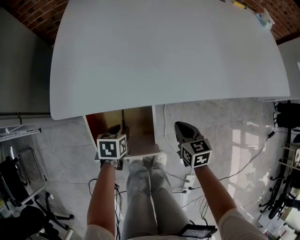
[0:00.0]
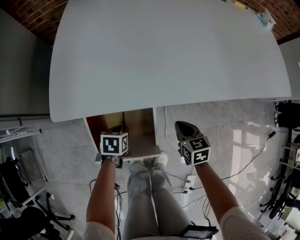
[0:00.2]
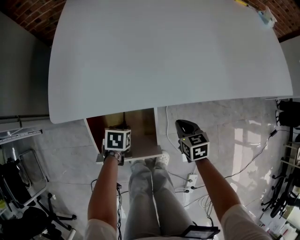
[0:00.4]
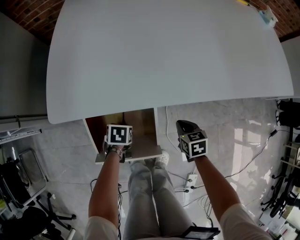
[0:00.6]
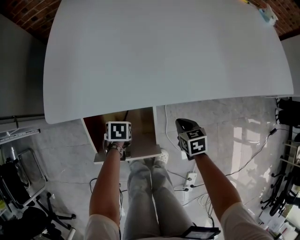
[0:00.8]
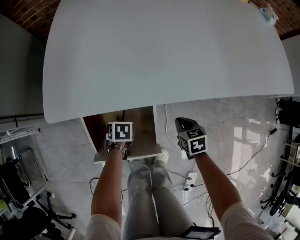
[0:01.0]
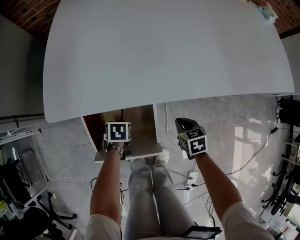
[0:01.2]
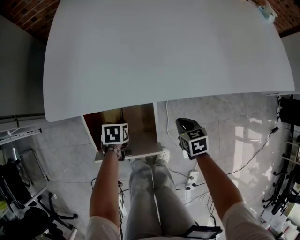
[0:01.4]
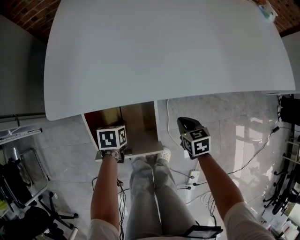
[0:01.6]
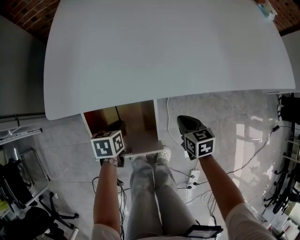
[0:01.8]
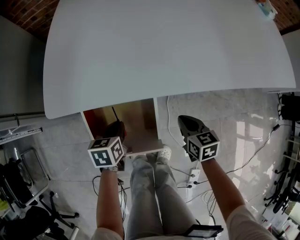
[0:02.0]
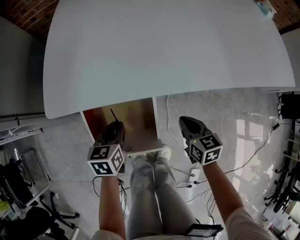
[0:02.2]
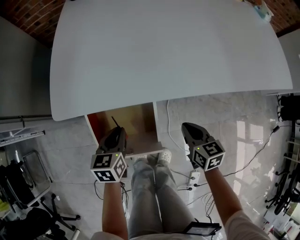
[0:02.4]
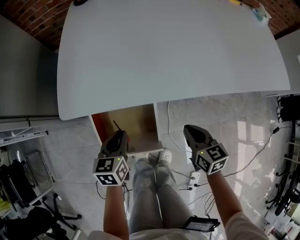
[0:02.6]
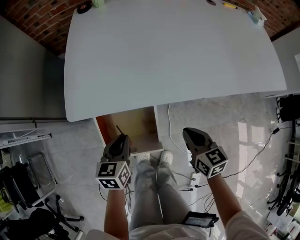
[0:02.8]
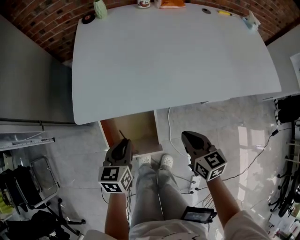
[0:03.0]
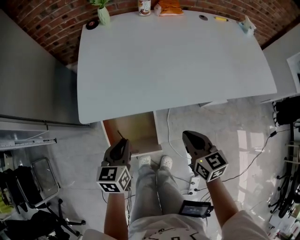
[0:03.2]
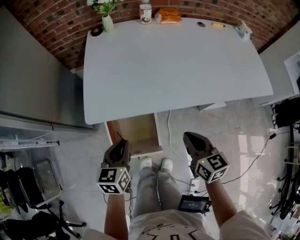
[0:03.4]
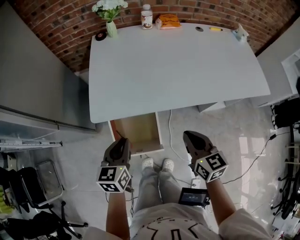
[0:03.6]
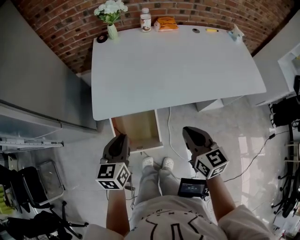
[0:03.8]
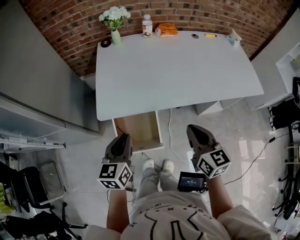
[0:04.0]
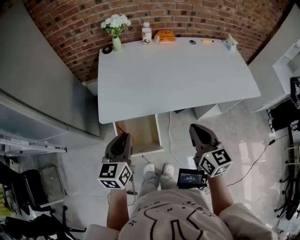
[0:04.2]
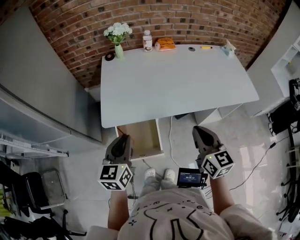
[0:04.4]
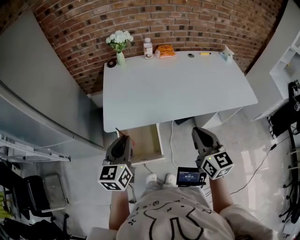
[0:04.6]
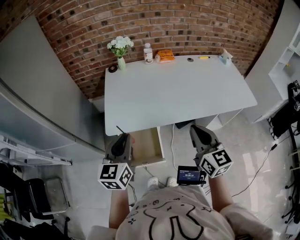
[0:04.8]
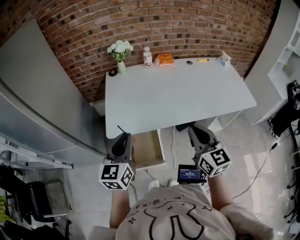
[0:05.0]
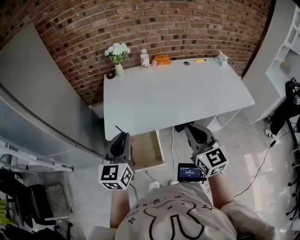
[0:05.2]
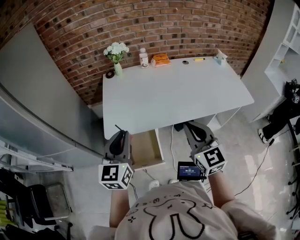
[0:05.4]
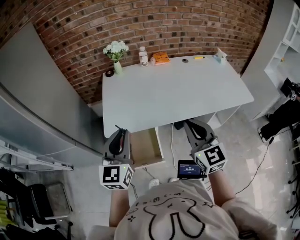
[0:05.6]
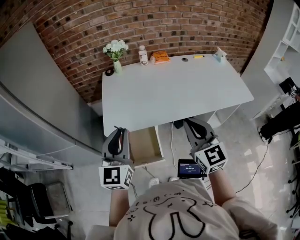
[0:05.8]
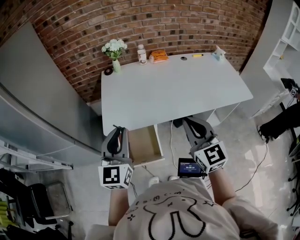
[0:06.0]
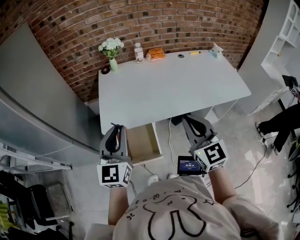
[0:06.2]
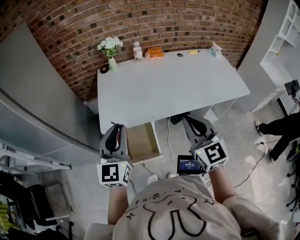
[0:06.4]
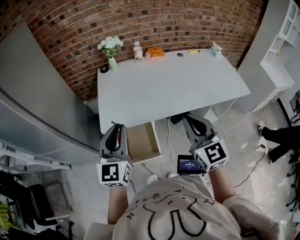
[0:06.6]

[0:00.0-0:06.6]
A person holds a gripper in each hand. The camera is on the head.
0:00.0 to 0:01.6: The right gripper moves downward, roughly 5 cm. The left gripper closes its fingers.
0:01.6 to 0:03.2: The grippers both shift upward by some 30 cm. The right gripper swivels about 30 degrees; the left gripper changes its angle by some 30 degrees.
0:03.2 to 0:05.0: Both grippers travel together upward, roughly 25 cm. The left gripper rotates roughly 30 degrees. The right gripper rotates roughly 30 degrees.
0:05.0 to 0:06.6: There are only small adjustments of the grippers.

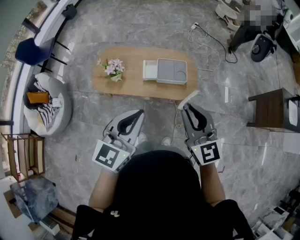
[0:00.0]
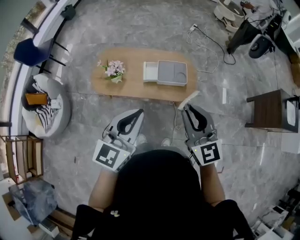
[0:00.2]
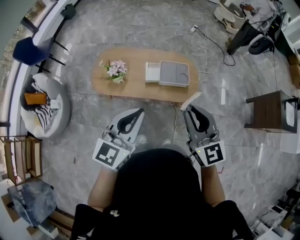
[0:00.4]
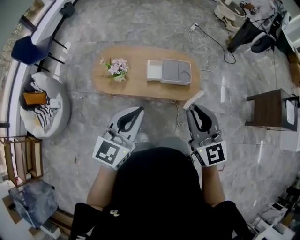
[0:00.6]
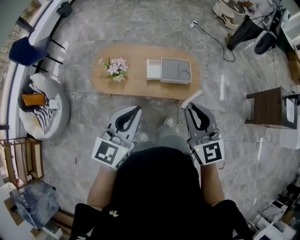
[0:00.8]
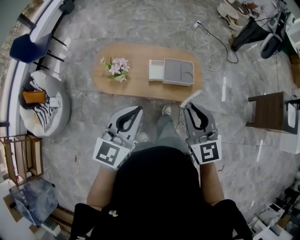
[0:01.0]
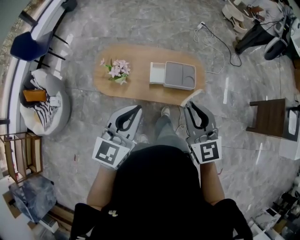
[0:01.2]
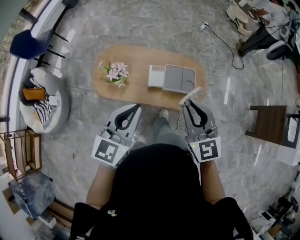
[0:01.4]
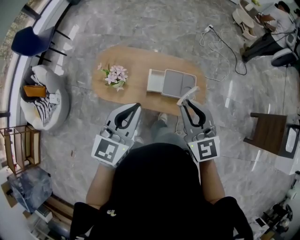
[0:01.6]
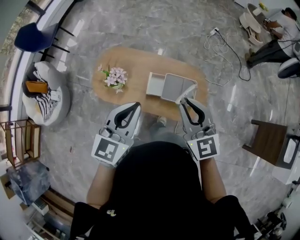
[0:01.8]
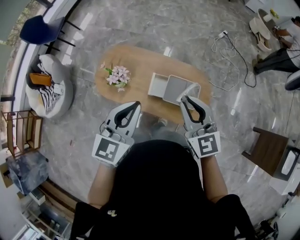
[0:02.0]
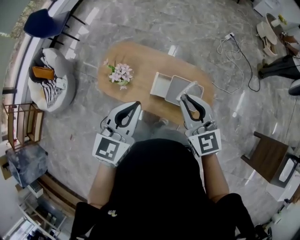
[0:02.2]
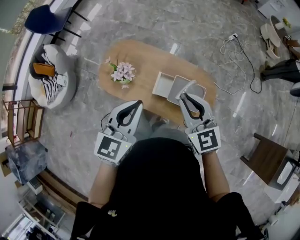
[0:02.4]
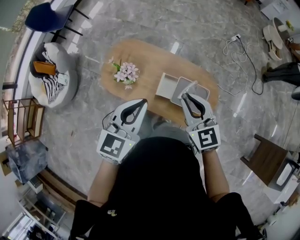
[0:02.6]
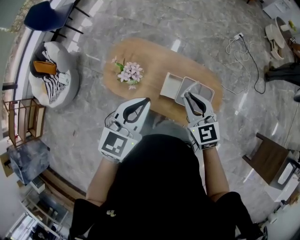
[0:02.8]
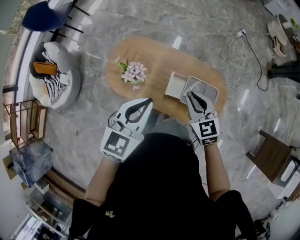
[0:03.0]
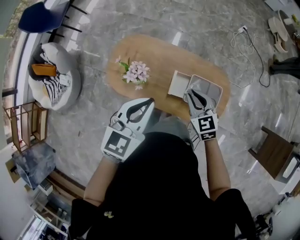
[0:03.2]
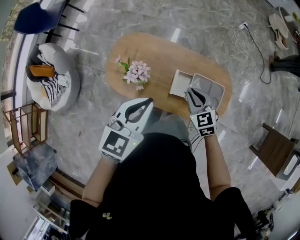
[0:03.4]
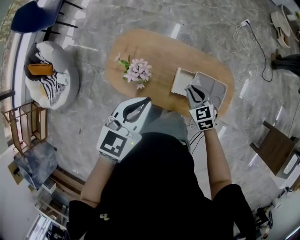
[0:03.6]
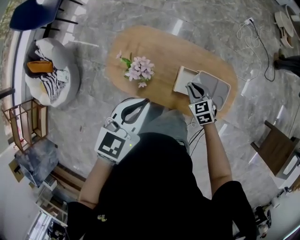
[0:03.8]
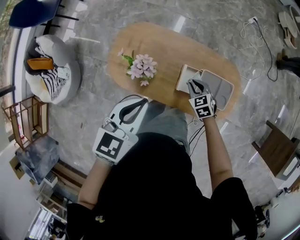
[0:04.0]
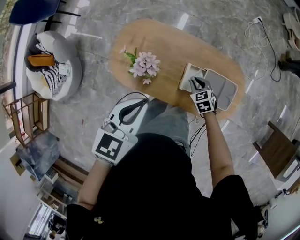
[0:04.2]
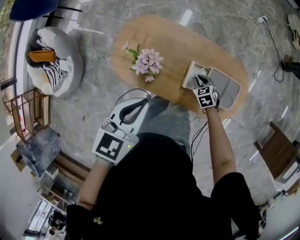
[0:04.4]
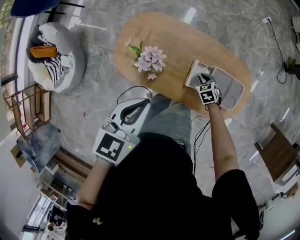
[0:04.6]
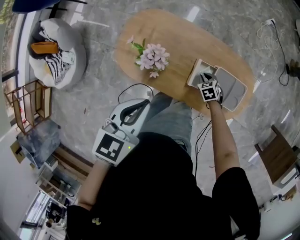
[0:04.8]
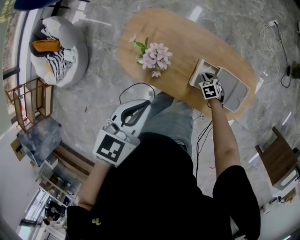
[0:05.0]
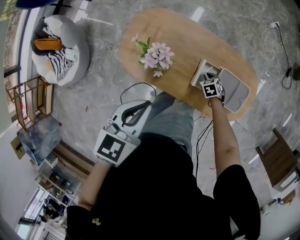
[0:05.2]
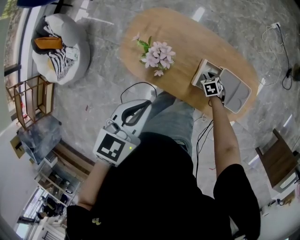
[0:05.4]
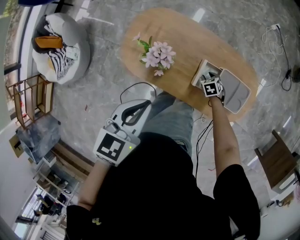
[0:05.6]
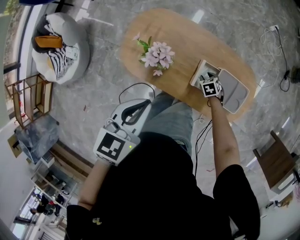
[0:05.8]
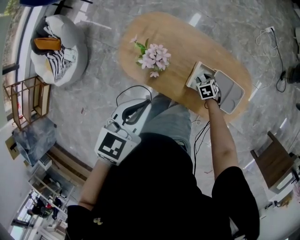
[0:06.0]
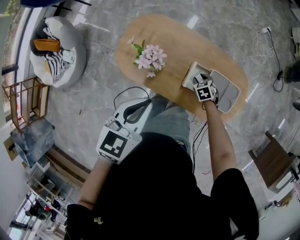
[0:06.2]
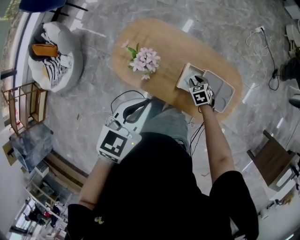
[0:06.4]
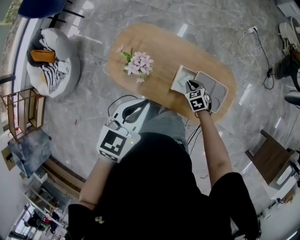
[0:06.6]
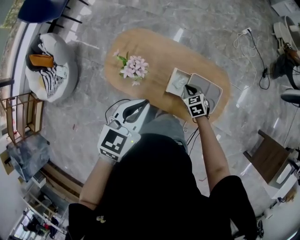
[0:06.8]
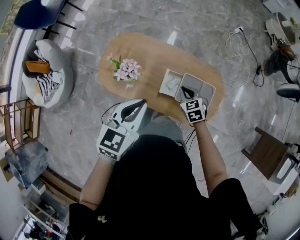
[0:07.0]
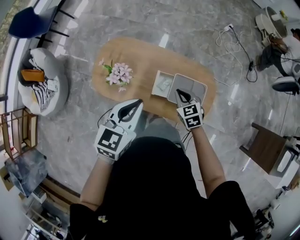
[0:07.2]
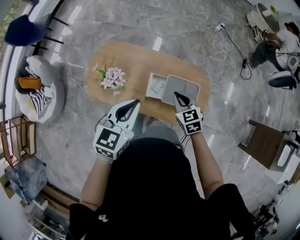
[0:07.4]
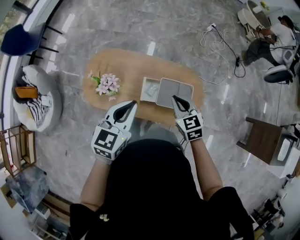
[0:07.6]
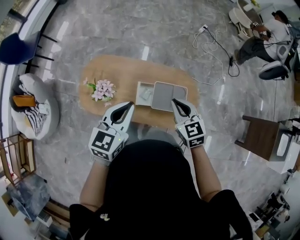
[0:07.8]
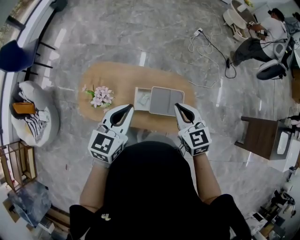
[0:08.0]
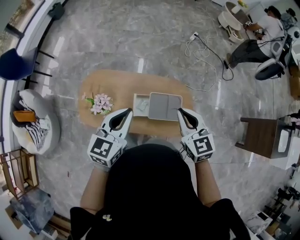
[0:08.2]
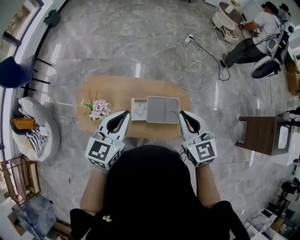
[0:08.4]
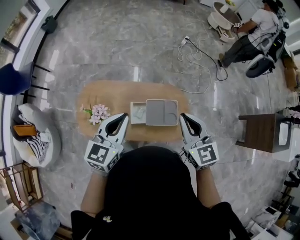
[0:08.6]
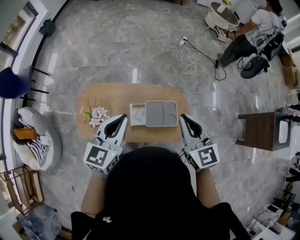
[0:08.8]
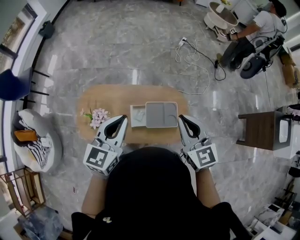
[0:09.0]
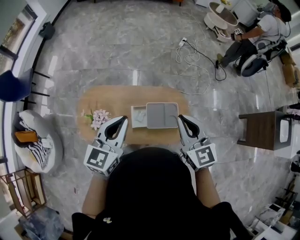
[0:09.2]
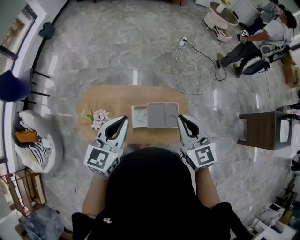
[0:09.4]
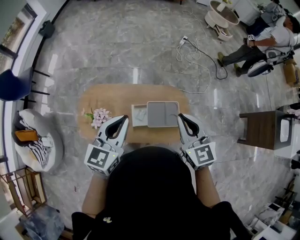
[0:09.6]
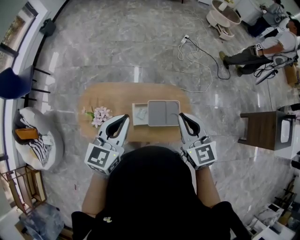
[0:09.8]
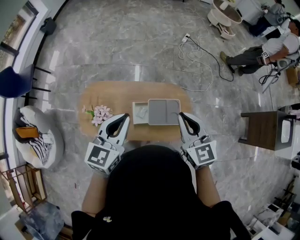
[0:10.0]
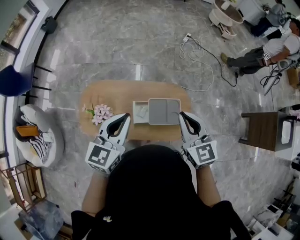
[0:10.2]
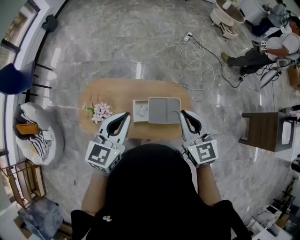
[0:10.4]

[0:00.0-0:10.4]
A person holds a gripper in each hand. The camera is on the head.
0:00.0 to 0:01.4: The grippers both shift forward and to the left by approximately 15 cm.
0:01.4 to 0:03.0: The right gripper travels forward and downward by roughly 30 cm, and swivels about 20 degrees; the left gripper shifts about 20 cm forward.
0:03.0 to 0:04.4: The right gripper travels downward by approximately 35 cm, and tilts its fingers approximately 30 degrees downward. Meanwhile the left gripper goes some 15 cm downward and to the left.
0:04.4 to 0:06.0: The right gripper heads downward, covering about 5 cm, and opens up.
0:06.0 to 0:07.4: The left gripper travels to the right and upward by roughly 15 cm, while the right gripper moves upward, about 30 cm, changes its angle by roughly 30 degrees, and closes its fingers.
0:07.4 to 0:09.0: The left gripper goes some 10 cm upward. Meanwhile the right gripper heads upward, covering about 25 cm, and swivels approximately 30 degrees.
0:09.0 to 0:10.4: The grippers stay close to where they were, moving slightly.

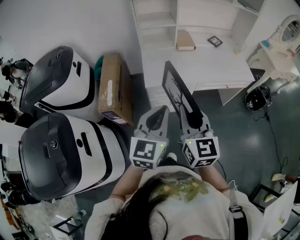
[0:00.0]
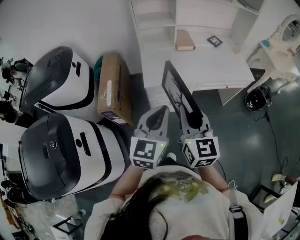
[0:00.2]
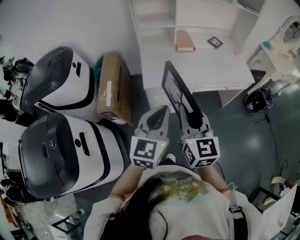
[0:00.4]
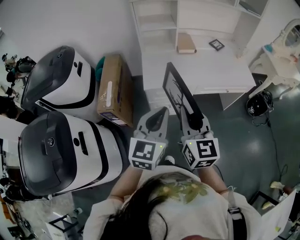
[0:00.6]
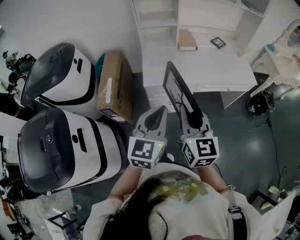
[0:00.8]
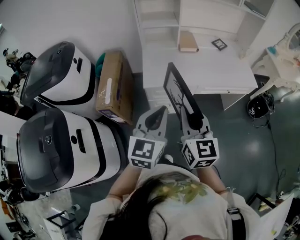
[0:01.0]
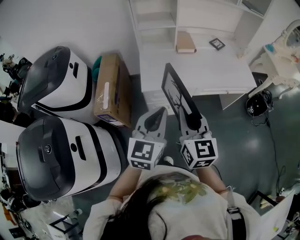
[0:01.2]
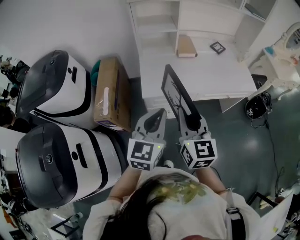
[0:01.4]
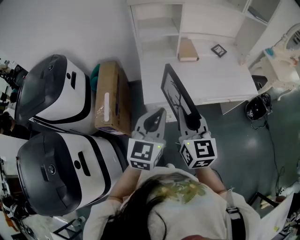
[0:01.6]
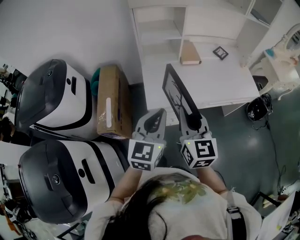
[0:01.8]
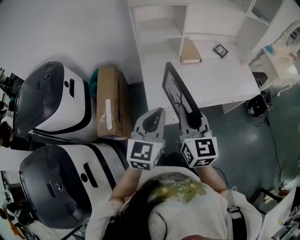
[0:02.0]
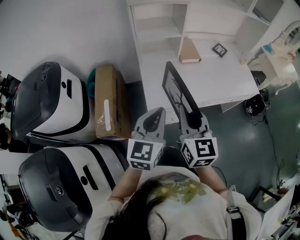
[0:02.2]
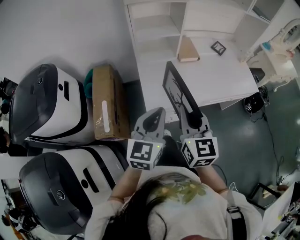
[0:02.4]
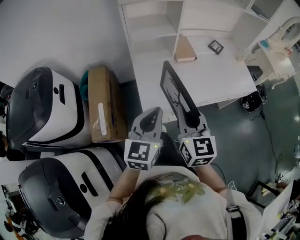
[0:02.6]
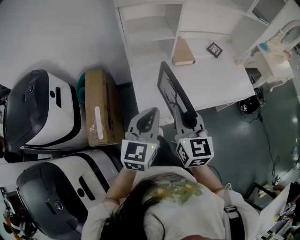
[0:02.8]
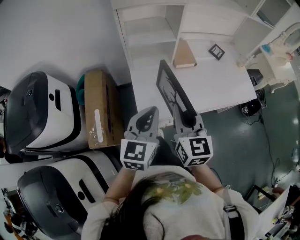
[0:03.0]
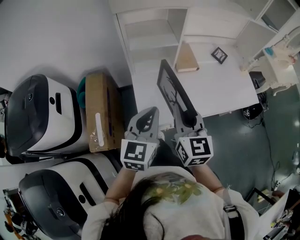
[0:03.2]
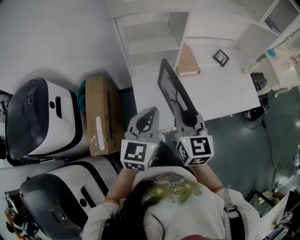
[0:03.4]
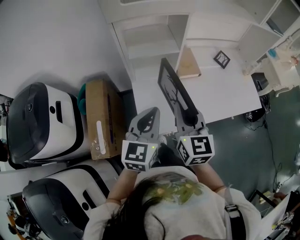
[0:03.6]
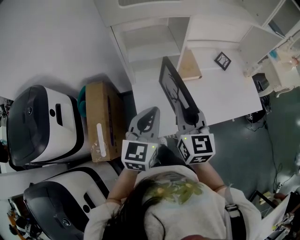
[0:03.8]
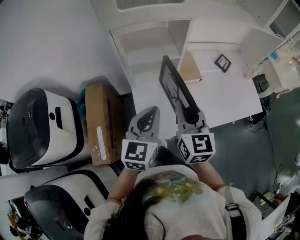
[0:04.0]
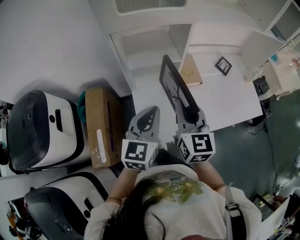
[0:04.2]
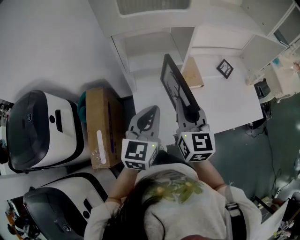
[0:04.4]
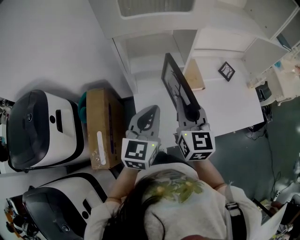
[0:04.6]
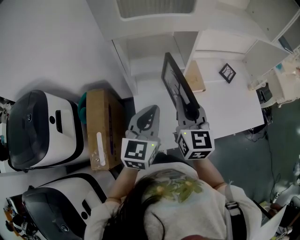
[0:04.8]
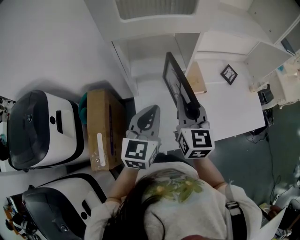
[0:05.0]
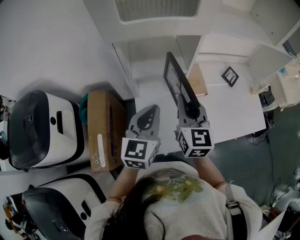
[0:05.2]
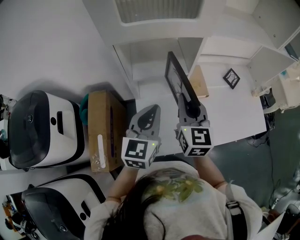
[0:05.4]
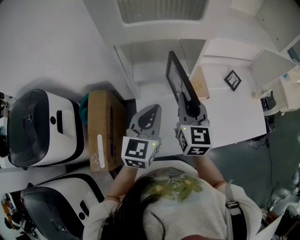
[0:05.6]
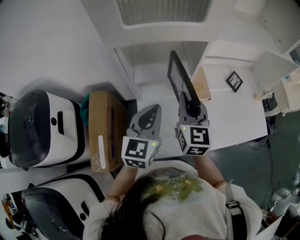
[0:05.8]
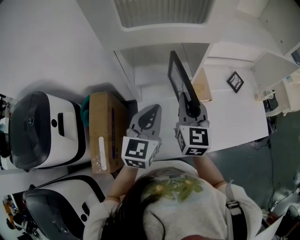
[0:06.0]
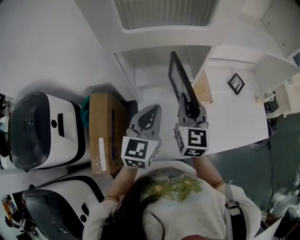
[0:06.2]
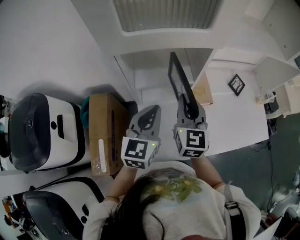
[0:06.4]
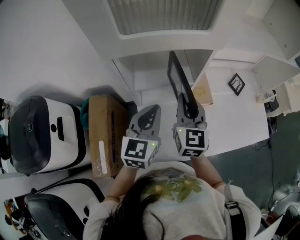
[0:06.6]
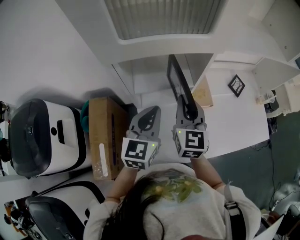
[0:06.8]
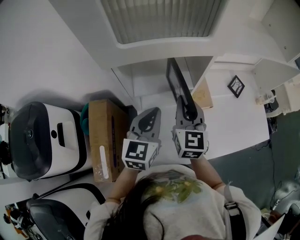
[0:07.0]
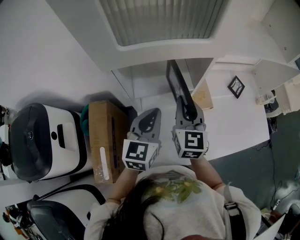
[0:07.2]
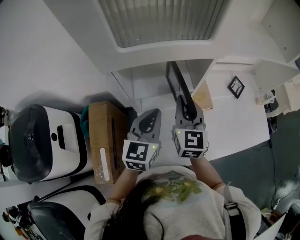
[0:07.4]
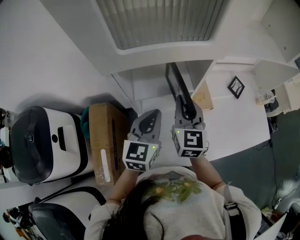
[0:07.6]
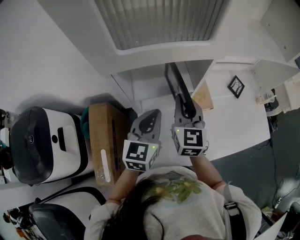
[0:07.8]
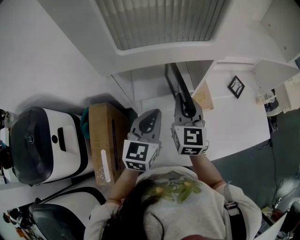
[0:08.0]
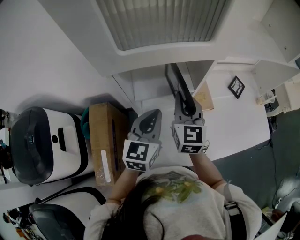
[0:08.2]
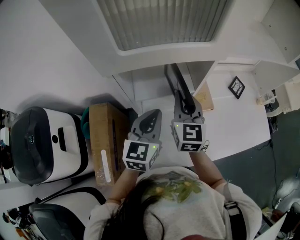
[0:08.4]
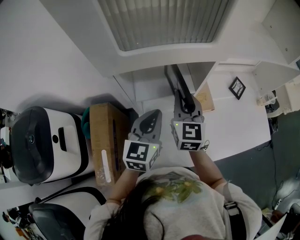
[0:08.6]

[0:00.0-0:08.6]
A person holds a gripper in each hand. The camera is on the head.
0:00.0 to 0:01.4: Both grippers travel together forward, approximately 10 cm.
0:01.4 to 0:02.8: The left gripper moves forward and to the left, roughly 20 cm, while the right gripper goes about 15 cm forward.
0:02.8 to 0:04.4: Both grippers move forward, about 20 cm.
0:04.4 to 0:05.8: The grippers both shift forward by approximately 10 cm.
0:05.8 to 0:07.2: Both grippers move forward, some 5 cm.
0:07.2 to 0:08.6: The grippers make only small movements.
